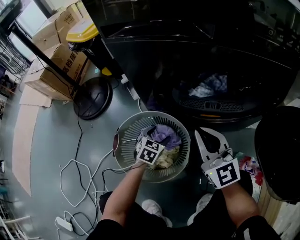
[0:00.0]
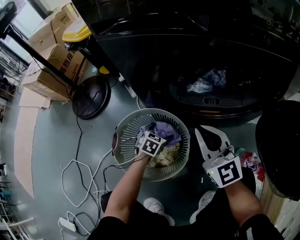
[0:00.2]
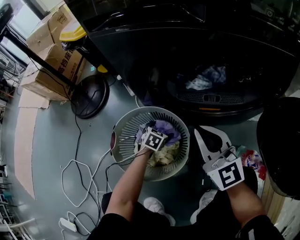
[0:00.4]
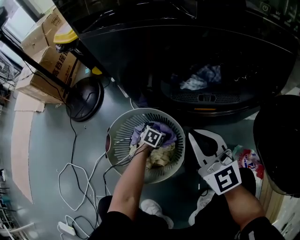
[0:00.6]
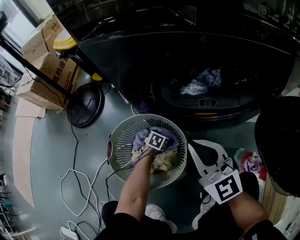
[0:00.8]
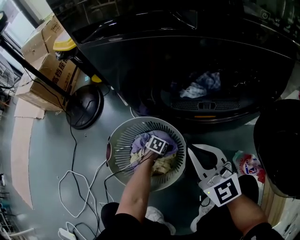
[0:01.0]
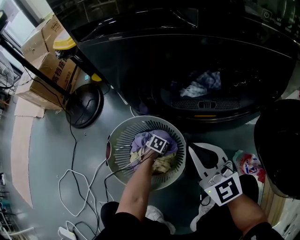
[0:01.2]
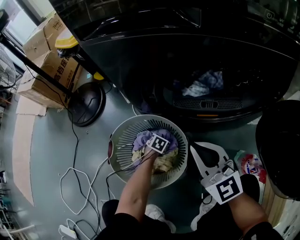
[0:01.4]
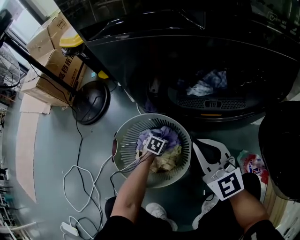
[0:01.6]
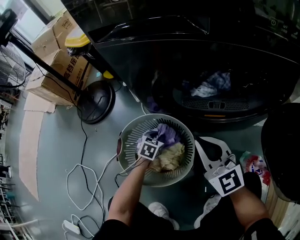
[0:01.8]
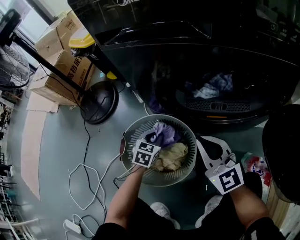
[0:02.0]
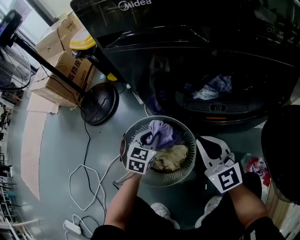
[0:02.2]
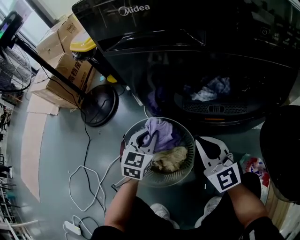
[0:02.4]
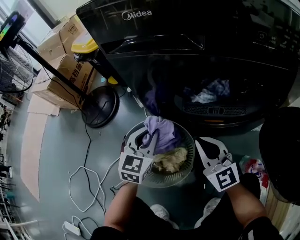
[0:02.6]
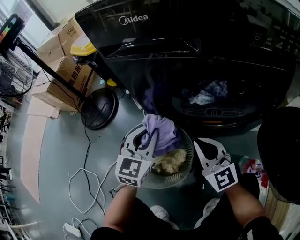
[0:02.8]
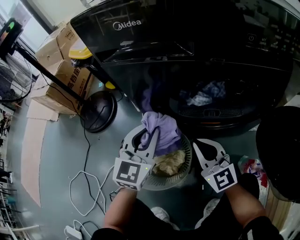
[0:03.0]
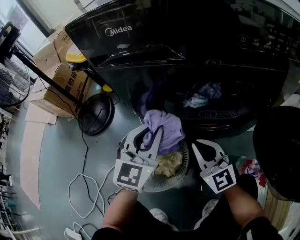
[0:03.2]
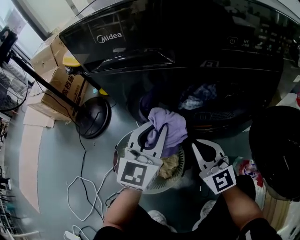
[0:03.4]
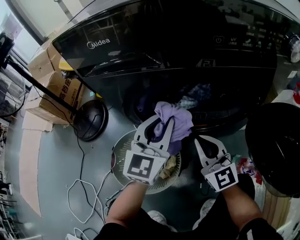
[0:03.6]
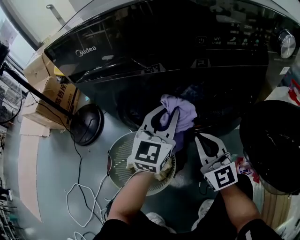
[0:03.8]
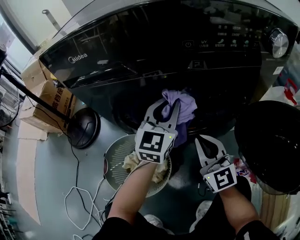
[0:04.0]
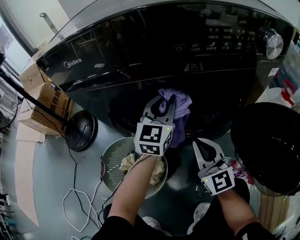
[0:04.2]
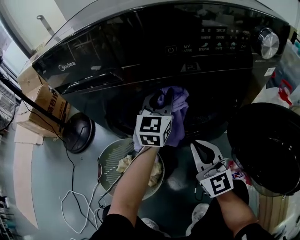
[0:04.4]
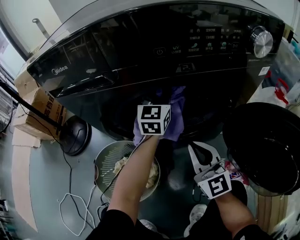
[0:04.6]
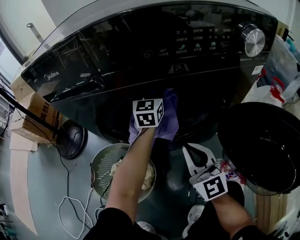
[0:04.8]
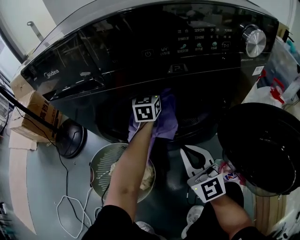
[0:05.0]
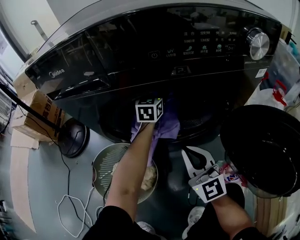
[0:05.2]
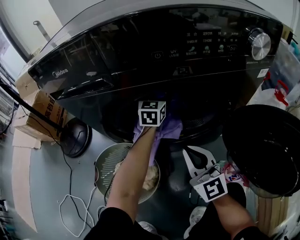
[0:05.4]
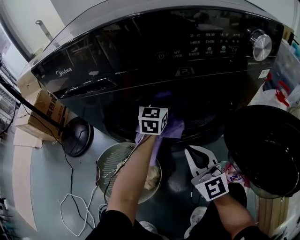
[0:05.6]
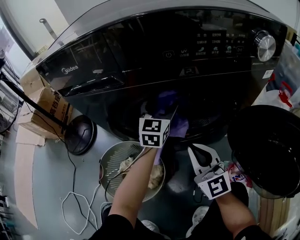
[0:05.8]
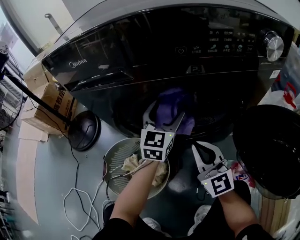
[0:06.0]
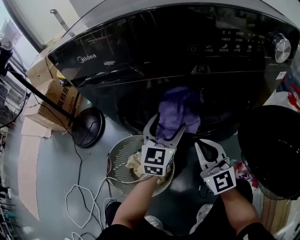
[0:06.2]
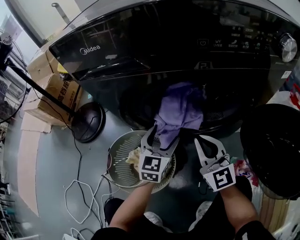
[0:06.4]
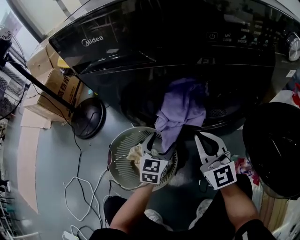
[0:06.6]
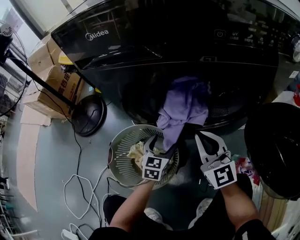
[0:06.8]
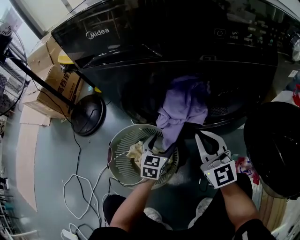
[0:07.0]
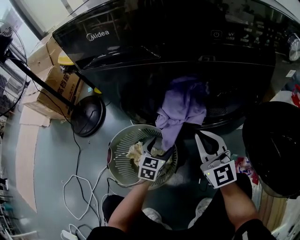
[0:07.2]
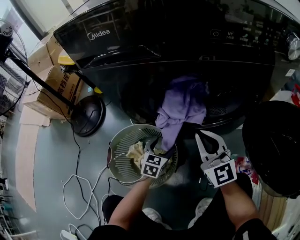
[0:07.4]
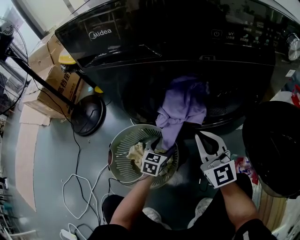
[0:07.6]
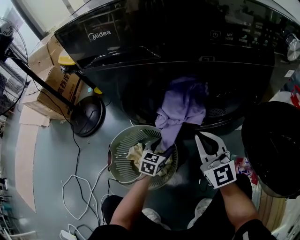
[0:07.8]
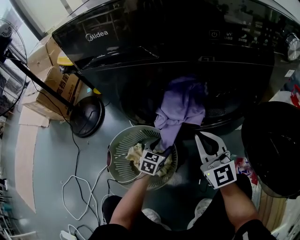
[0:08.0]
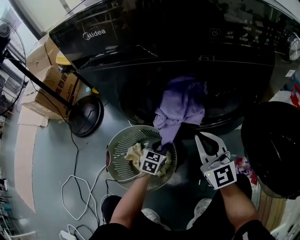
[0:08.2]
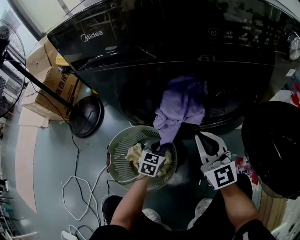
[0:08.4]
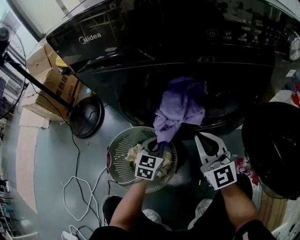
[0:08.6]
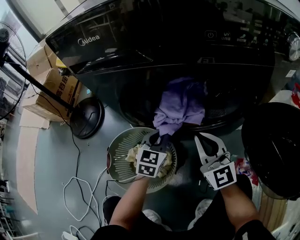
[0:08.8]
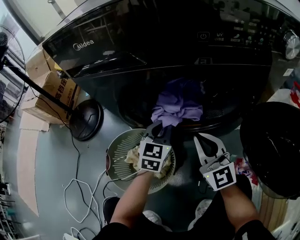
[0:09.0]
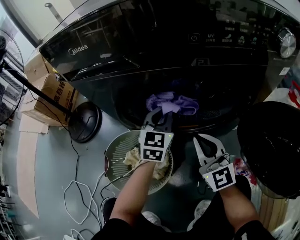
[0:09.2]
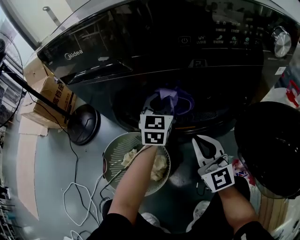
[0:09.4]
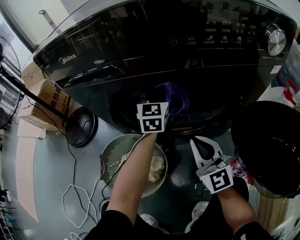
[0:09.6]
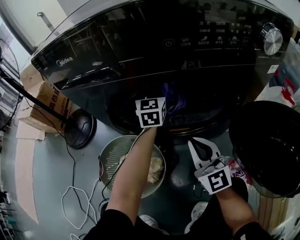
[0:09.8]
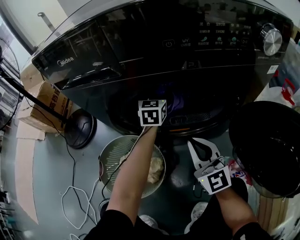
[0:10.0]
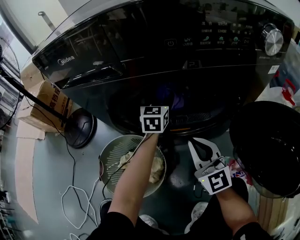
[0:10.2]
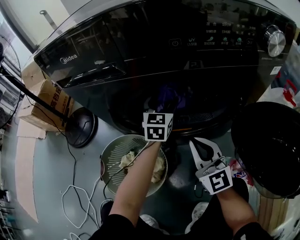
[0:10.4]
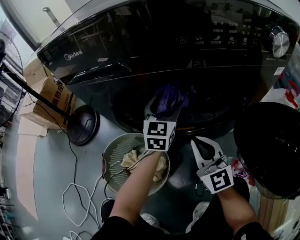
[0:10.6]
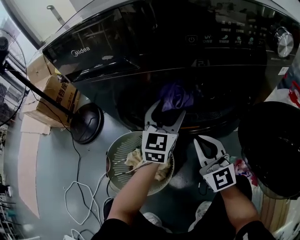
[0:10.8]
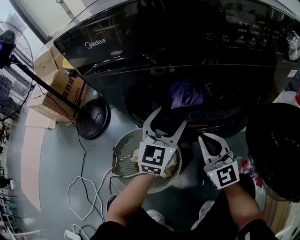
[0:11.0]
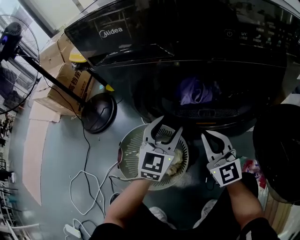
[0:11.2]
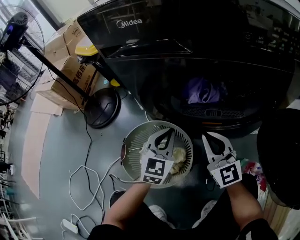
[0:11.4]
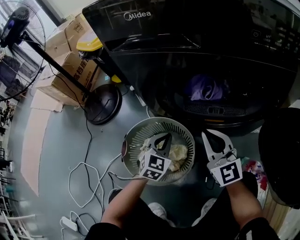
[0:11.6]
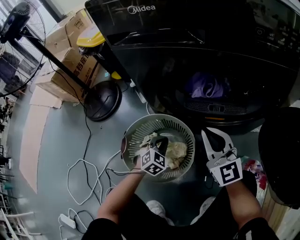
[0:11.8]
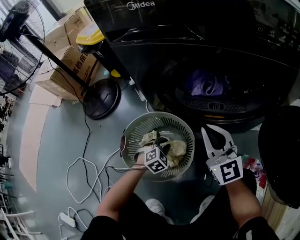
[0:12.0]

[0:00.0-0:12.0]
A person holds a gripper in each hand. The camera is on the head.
0:00.0 to 0:01.6: The left gripper moves downward, about 10 cm, and closes up.
0:01.6 to 0:03.0: The left gripper goes some 40 cm upward, and points its fingers approximately 50 degrees further upward.
0:03.0 to 0:04.4: The left gripper is displaced to the right and forward by some 25 cm, while the right gripper heads to the right, covering about 15 cm.
0:04.4 to 0:06.0: The left gripper travels forward and back again, some 10 cm each way, and opens up.
0:06.0 to 0:07.6: The left gripper goes approximately 30 cm downward, backward and to the left, and swivels approximately 30 degrees.
0:07.6 to 0:09.0: The left gripper shifts about 15 cm upward and forward, and closes.
0:09.0 to 0:10.4: The left gripper heads forward and to the right, covering roughly 10 cm, and opens its fingers.
0:10.4 to 0:12.0: The right gripper heads to the left, covering some 10 cm; the left gripper travels downward, backward and to the left by some 40 cm, tilts its fingers some 40 degrees downward, and closes.

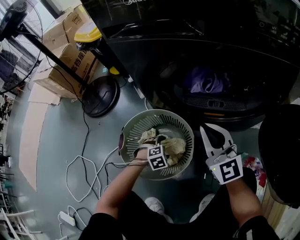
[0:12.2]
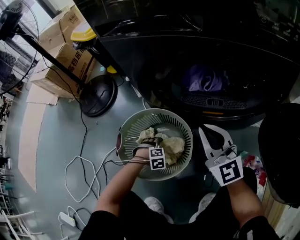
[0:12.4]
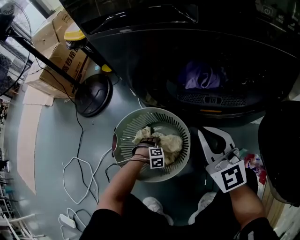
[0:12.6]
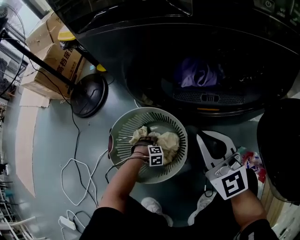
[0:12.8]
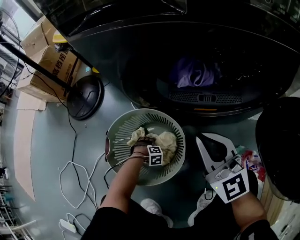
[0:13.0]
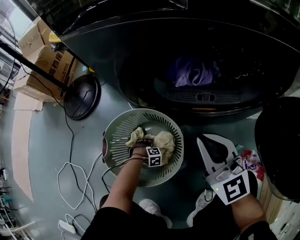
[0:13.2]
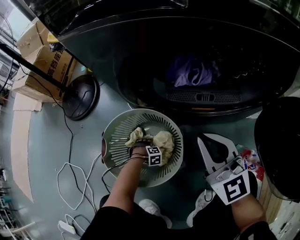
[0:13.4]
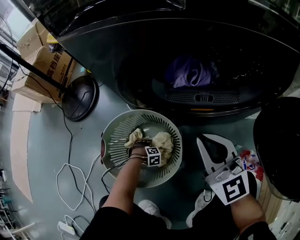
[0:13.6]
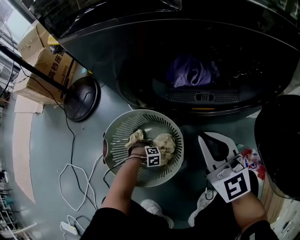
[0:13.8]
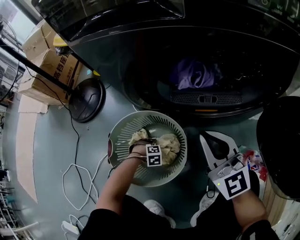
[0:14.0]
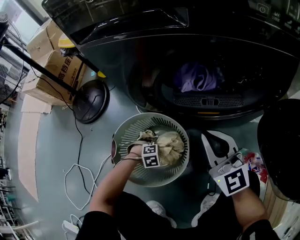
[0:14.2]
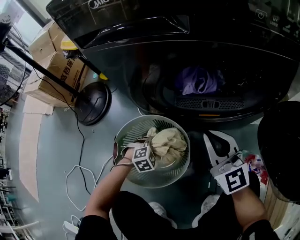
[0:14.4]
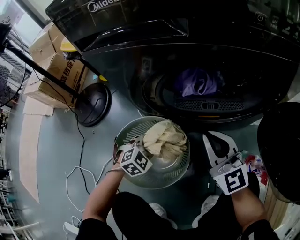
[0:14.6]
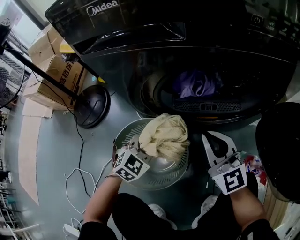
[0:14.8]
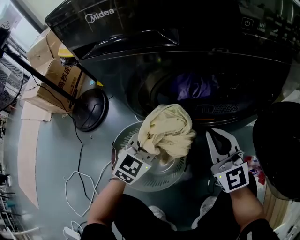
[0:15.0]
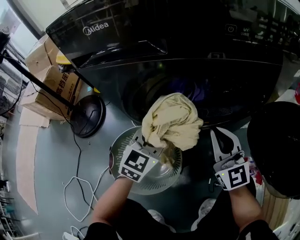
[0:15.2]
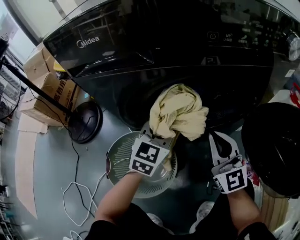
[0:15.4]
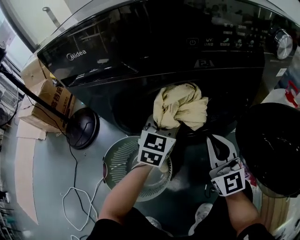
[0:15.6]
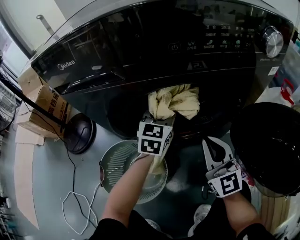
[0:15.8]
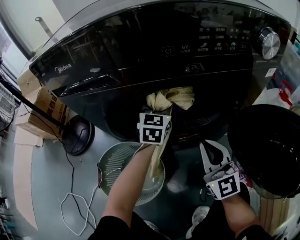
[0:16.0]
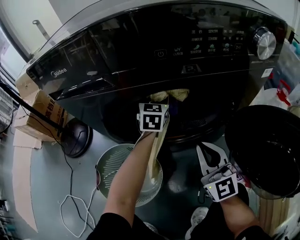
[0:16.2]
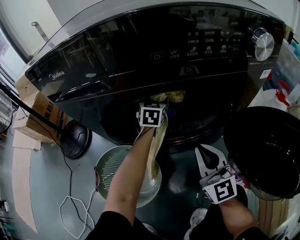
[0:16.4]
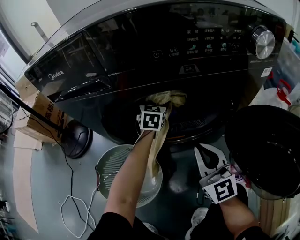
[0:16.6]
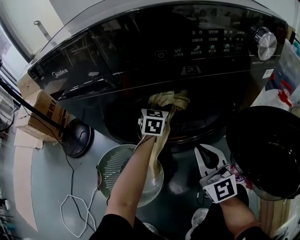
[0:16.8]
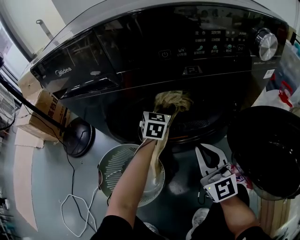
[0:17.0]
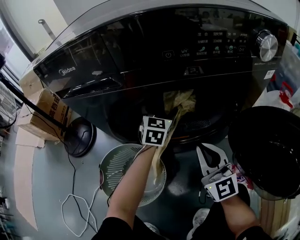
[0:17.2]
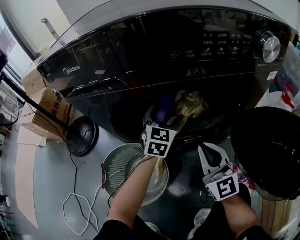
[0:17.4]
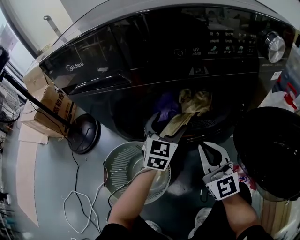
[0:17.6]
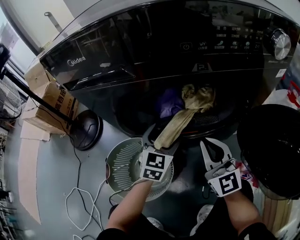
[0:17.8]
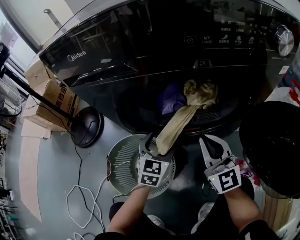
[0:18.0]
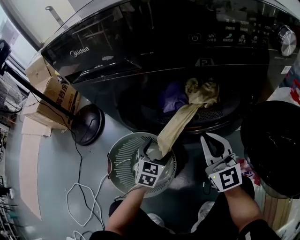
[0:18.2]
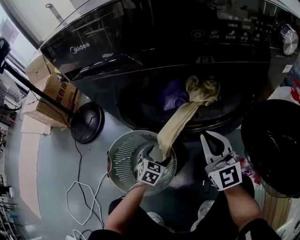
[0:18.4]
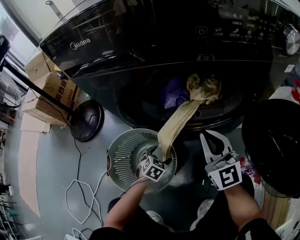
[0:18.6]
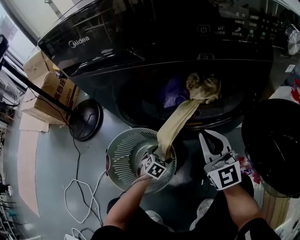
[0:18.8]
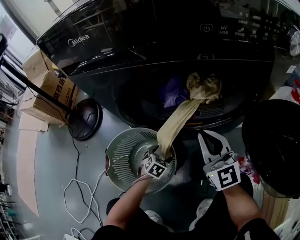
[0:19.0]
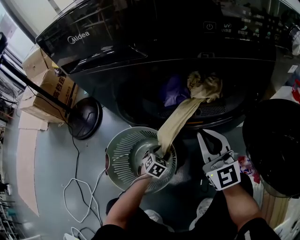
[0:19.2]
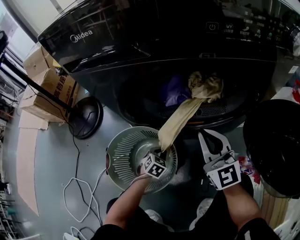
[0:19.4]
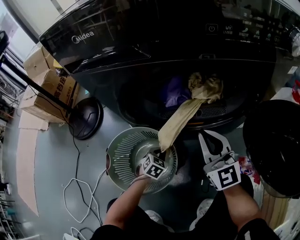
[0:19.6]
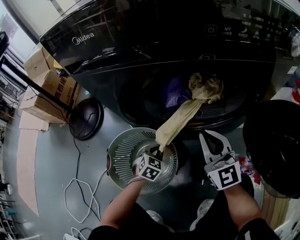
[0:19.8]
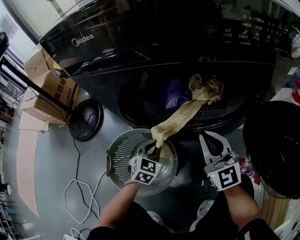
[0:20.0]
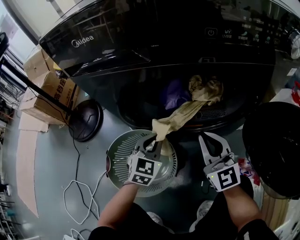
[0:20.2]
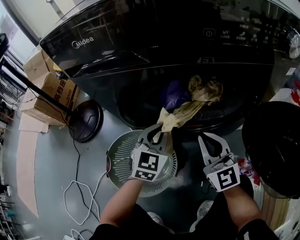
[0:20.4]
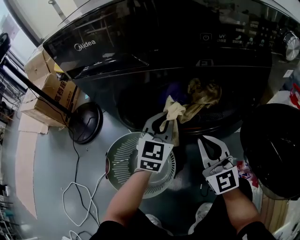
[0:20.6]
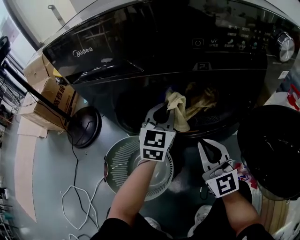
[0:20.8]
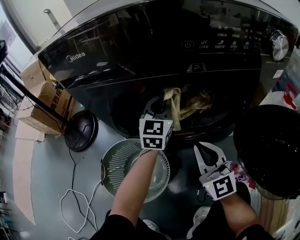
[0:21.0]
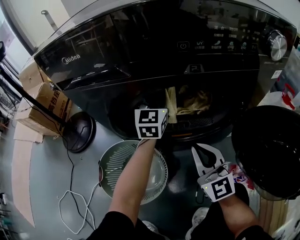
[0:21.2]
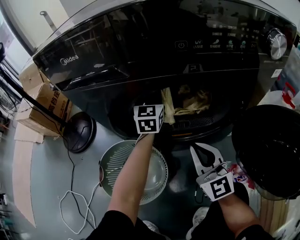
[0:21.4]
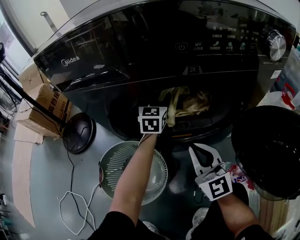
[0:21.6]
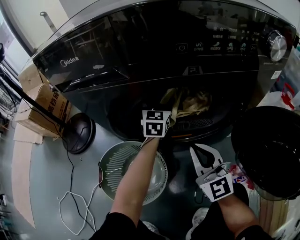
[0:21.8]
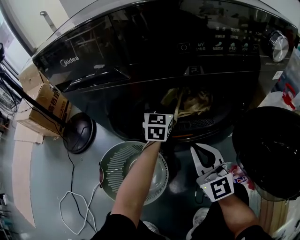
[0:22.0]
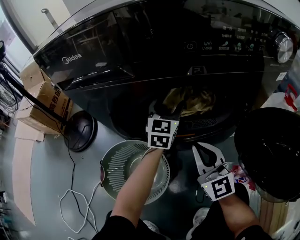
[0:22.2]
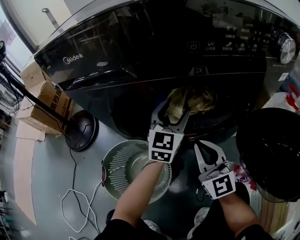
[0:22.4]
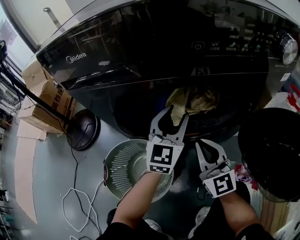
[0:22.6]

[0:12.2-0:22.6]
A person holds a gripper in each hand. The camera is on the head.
0:12.2 to 0:13.6: The left gripper shifts some 15 cm downward, and changes its angle by some 30 degrees.
0:13.6 to 0:15.2: The right gripper ends up some 10 cm from where it was. Meanwhile the left gripper heads upward, covering some 50 cm, tips its fingers upward by about 60 degrees, and closes up.
0:15.2 to 0:16.6: The left gripper goes roughly 25 cm forward and to the right, and opens up. Meanwhile the right gripper heads to the right, covering roughly 5 cm.
0:16.6 to 0:18.2: The left gripper shifts about 30 cm backward, to the left and downward.
0:18.2 to 0:19.6: The left gripper shifts roughly 15 cm downward, and closes.
0:19.6 to 0:21.2: The left gripper travels upward and forward by roughly 40 cm, and tilts its fingers approximately 50 degrees upward.
0:21.2 to 0:22.6: The left gripper shifts some 10 cm backward, and opens.

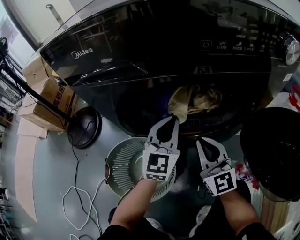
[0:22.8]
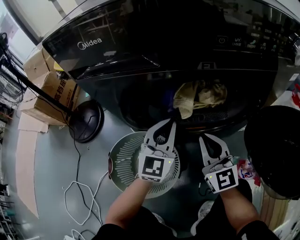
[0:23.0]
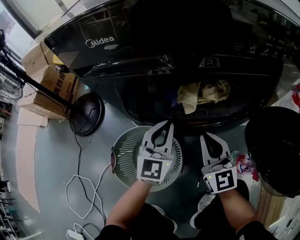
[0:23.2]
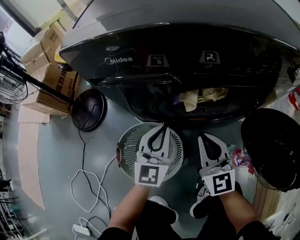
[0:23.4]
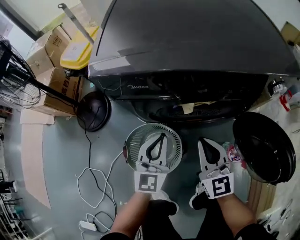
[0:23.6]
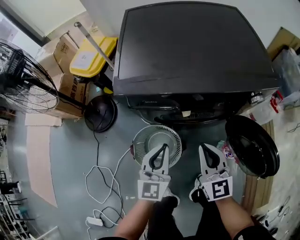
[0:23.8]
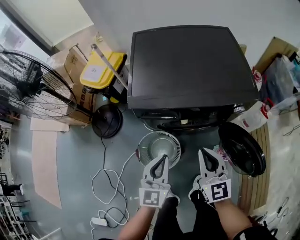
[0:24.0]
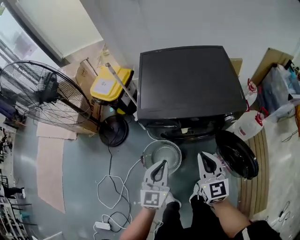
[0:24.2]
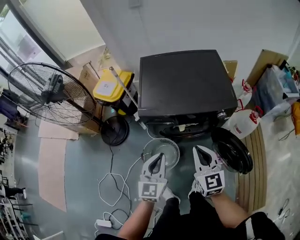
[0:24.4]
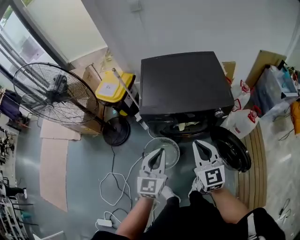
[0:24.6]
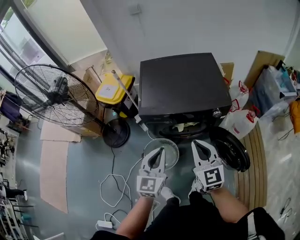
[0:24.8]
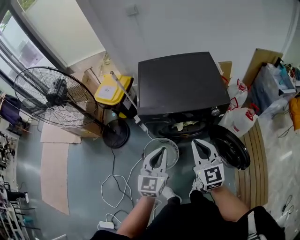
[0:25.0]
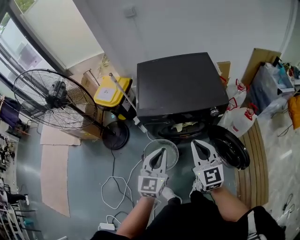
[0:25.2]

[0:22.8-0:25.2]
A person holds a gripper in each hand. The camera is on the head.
0:22.8 to 0:24.0: The right gripper goes approximately 35 cm upward. Meanwhile the left gripper moves upward and backward, roughly 35 cm.
0:24.0 to 0:25.2: Both grippers move upward, roughly 20 cm.
